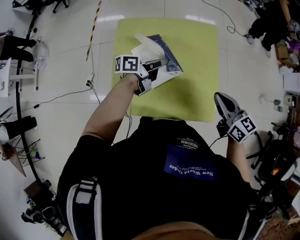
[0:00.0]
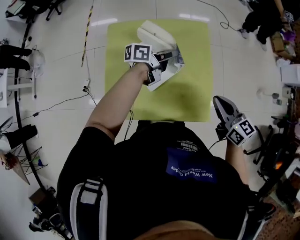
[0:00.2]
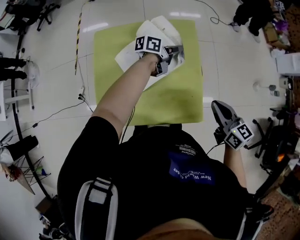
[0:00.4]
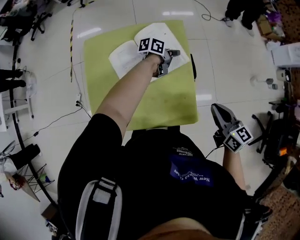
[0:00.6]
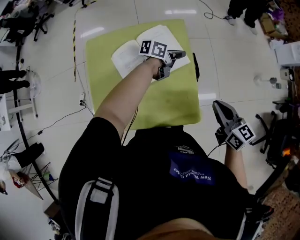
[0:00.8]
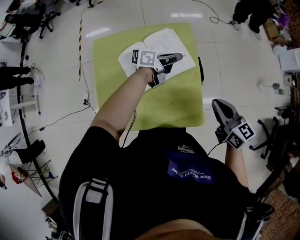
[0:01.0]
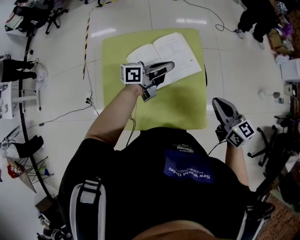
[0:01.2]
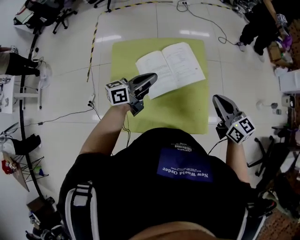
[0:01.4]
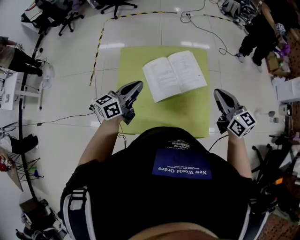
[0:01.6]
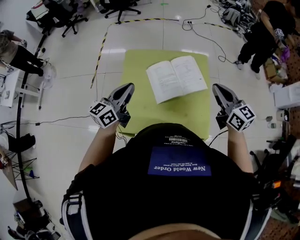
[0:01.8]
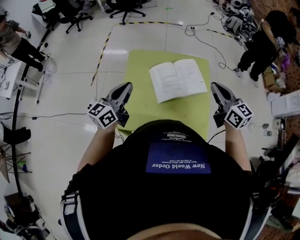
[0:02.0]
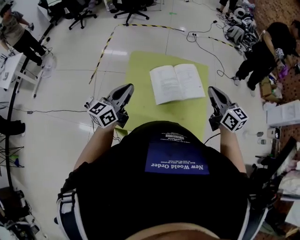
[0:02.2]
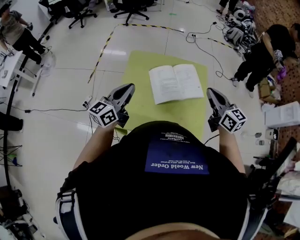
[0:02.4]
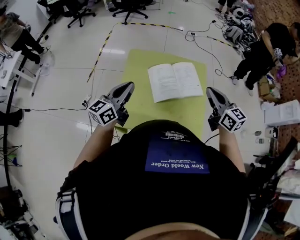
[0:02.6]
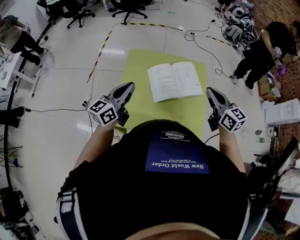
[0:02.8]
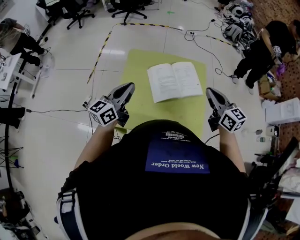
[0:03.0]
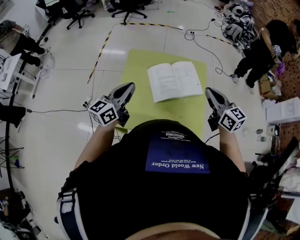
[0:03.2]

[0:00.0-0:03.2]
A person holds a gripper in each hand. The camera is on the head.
0:00.0 to 0:01.6: The right gripper goes some 10 cm upward and forward, and reaches about 15 cm to the right, then returns; the left gripper goes approximately 15 cm upward and backward, reaches roughly 20 cm to the right, then returns, and rotates some 40 degrees.
0:01.6 to 0:03.2: The left gripper heads to the left and backward, covering approximately 10 cm. Meanwhile the right gripper shifts roughly 5 cm to the left.

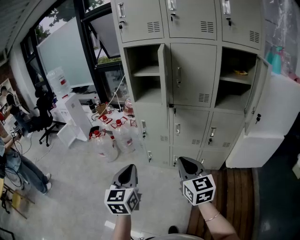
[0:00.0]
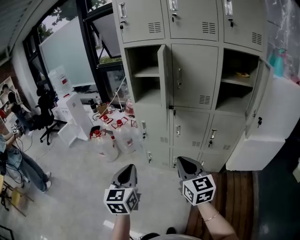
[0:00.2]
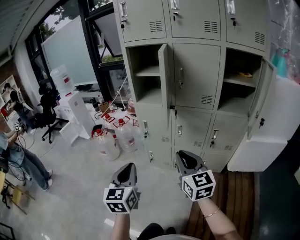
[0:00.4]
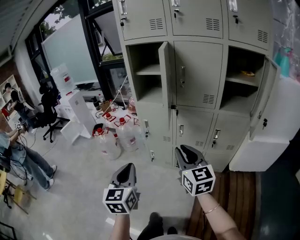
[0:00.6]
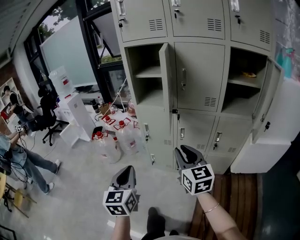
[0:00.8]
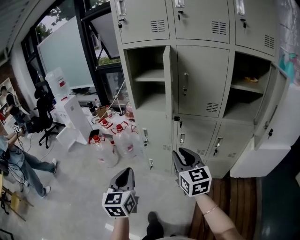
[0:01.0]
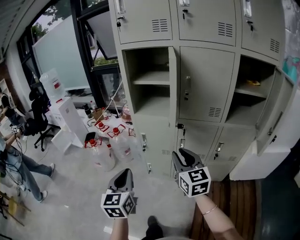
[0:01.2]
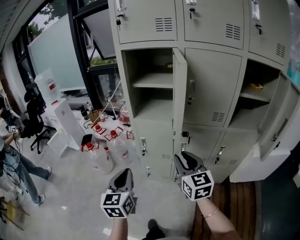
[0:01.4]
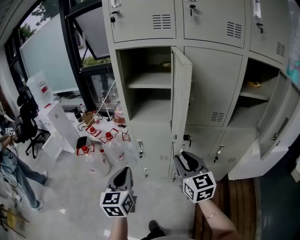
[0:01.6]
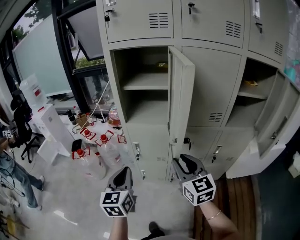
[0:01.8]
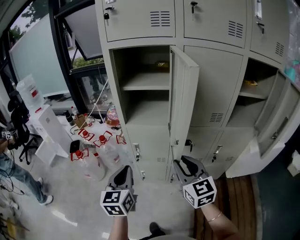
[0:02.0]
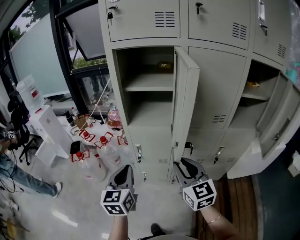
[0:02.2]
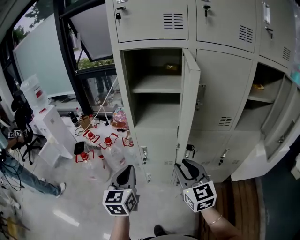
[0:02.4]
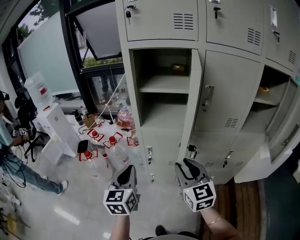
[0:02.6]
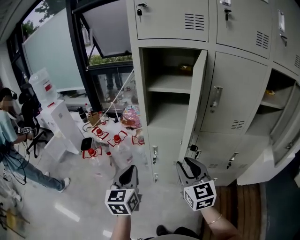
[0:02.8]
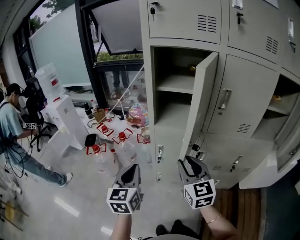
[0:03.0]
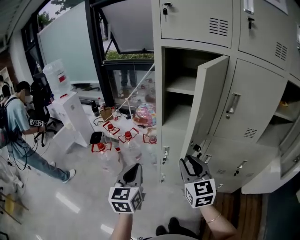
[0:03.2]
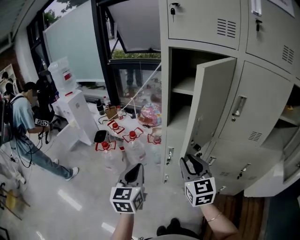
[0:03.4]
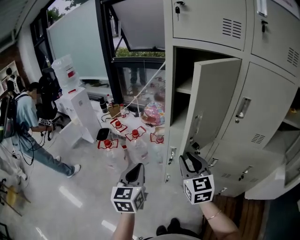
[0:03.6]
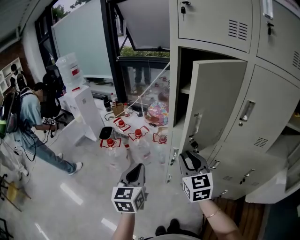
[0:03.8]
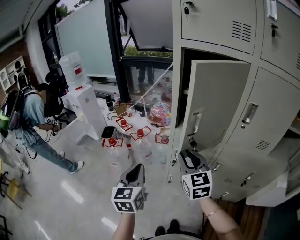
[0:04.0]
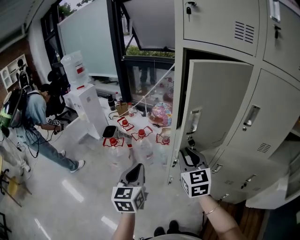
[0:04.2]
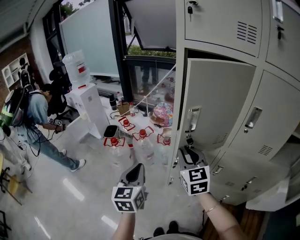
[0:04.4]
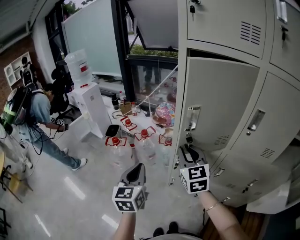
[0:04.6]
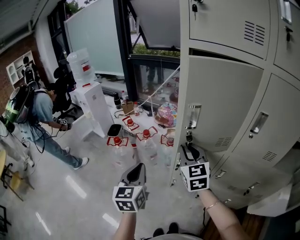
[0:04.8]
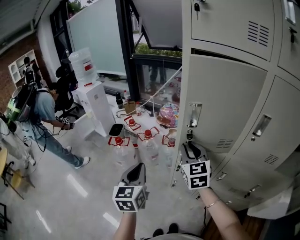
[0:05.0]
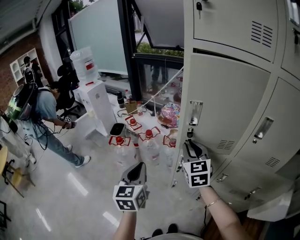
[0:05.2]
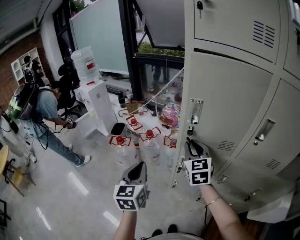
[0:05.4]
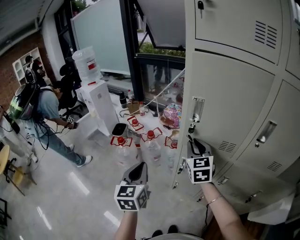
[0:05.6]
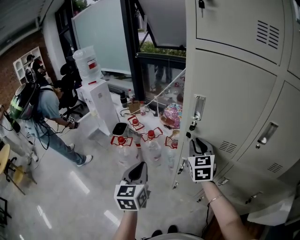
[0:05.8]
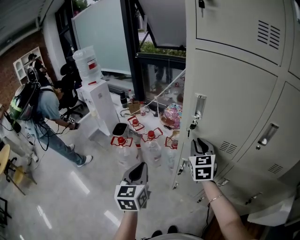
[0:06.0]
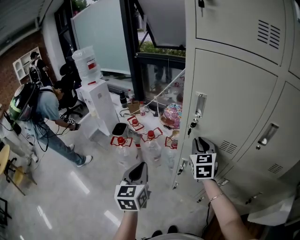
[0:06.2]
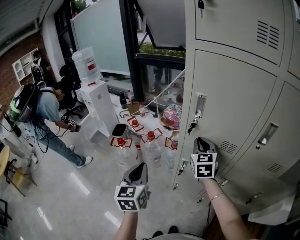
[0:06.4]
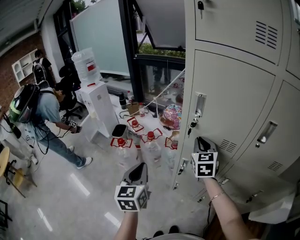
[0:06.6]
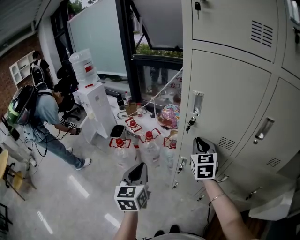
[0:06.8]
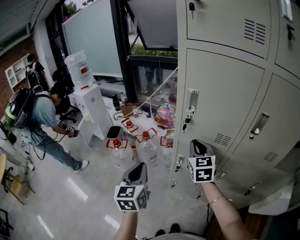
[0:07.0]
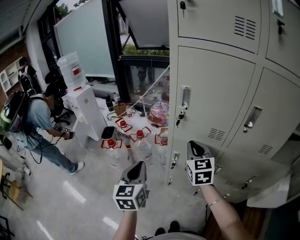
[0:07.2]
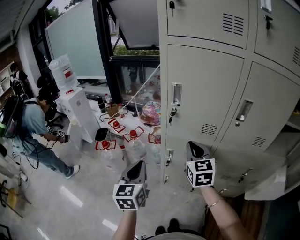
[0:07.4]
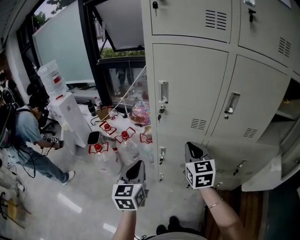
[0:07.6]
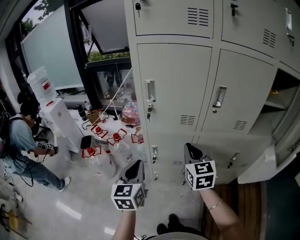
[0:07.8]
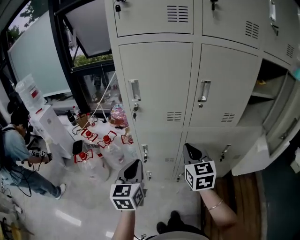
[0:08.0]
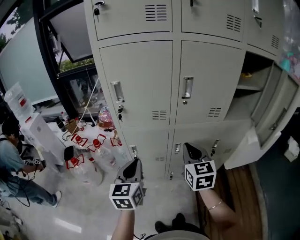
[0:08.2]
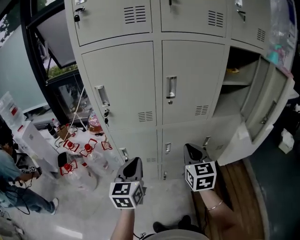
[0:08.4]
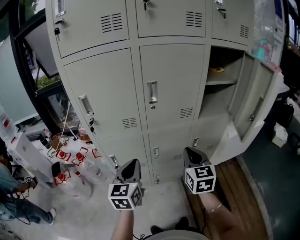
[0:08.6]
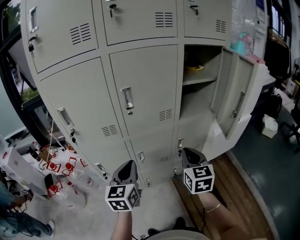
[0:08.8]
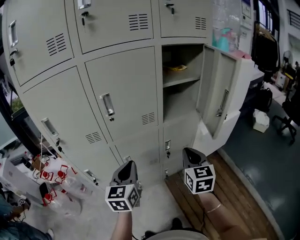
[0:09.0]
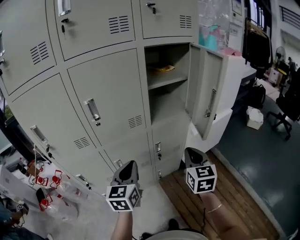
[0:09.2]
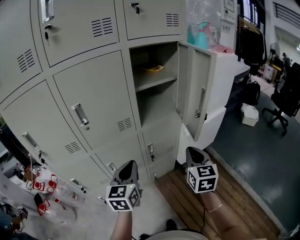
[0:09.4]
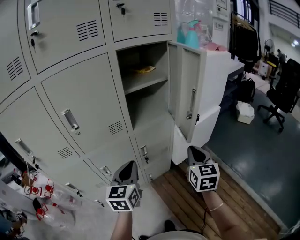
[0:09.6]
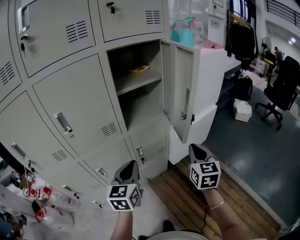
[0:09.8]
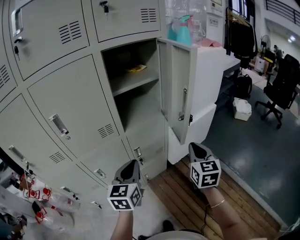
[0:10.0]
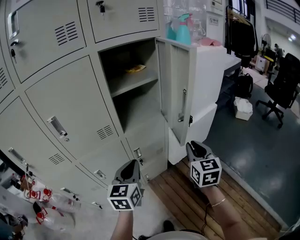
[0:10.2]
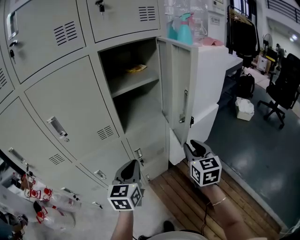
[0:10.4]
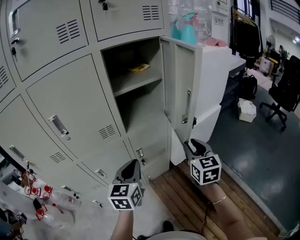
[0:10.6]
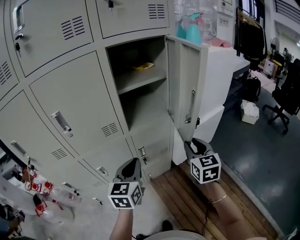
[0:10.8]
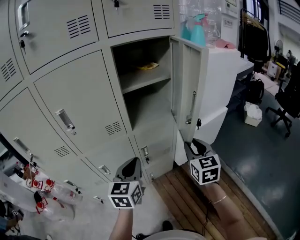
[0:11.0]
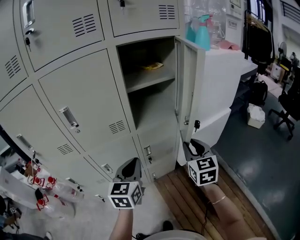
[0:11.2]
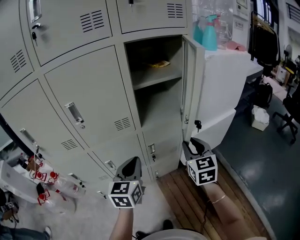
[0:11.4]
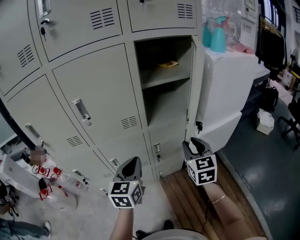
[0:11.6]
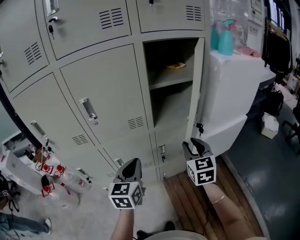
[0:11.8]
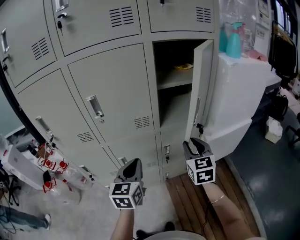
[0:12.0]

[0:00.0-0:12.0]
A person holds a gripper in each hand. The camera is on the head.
0:00.0 to 0:01.6: The grippers both shift forward by some 25 cm. The right gripper opens up.
0:01.6 to 0:03.0: Both grippers move to the left and forward, about 15 cm.
0:03.0 to 0:04.4: The right gripper shifts about 15 cm forward and to the left, while the left gripper ends up roughly 5 cm from where it was.
0:04.4 to 0:06.0: The right gripper moves forward and to the right, roughly 15 cm; the left gripper is displaced forward by about 5 cm.
0:06.0 to 0:07.6: The right gripper is displaced backward by approximately 15 cm, while the left gripper is displaced to the right and backward by about 10 cm.
0:07.6 to 0:09.0: The right gripper ends up approximately 40 cm from where it was, and changes its angle by approximately 40 degrees. The left gripper shifts by roughly 35 cm, and swivels some 40 degrees.
0:09.0 to 0:10.4: Both grippers move to the right and forward, approximately 20 cm. The right gripper opens up.
0:10.4 to 0:12.0: Both grippers move to the left, approximately 15 cm.

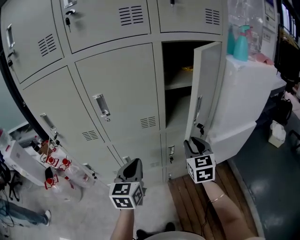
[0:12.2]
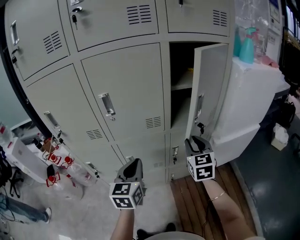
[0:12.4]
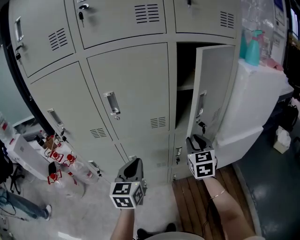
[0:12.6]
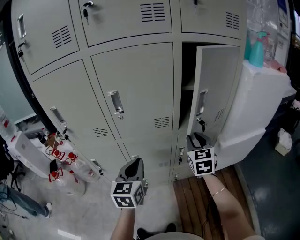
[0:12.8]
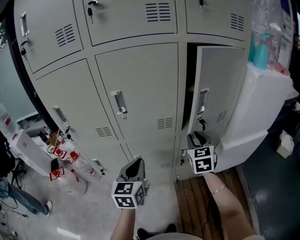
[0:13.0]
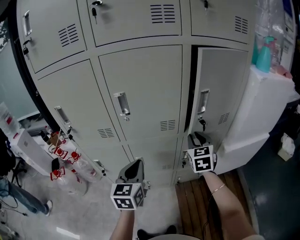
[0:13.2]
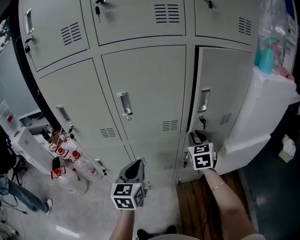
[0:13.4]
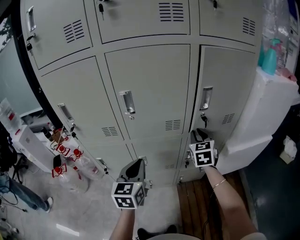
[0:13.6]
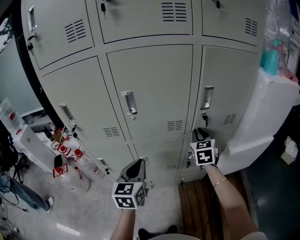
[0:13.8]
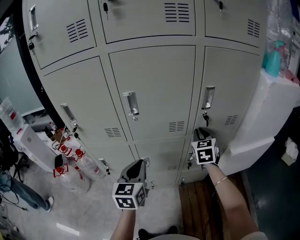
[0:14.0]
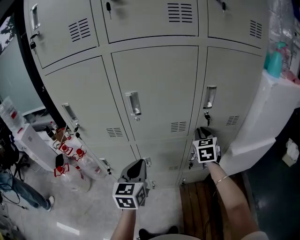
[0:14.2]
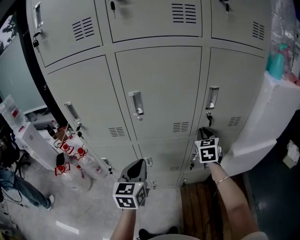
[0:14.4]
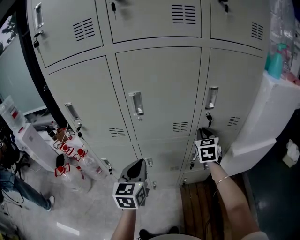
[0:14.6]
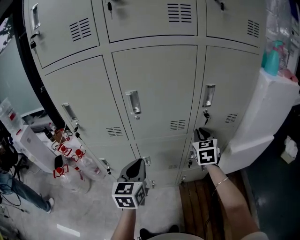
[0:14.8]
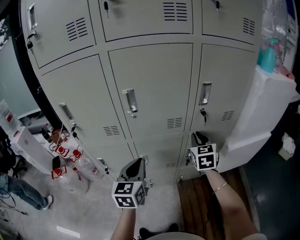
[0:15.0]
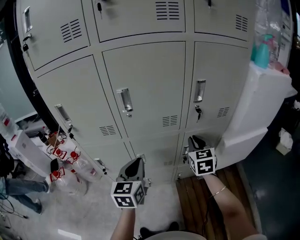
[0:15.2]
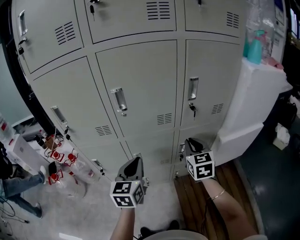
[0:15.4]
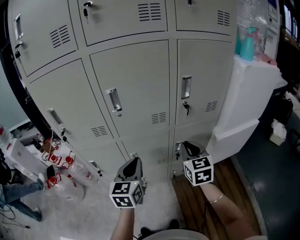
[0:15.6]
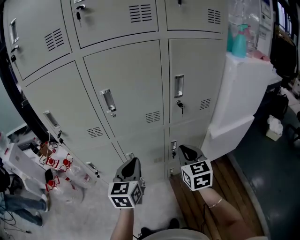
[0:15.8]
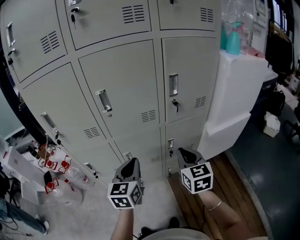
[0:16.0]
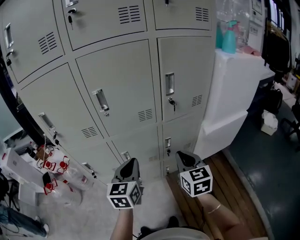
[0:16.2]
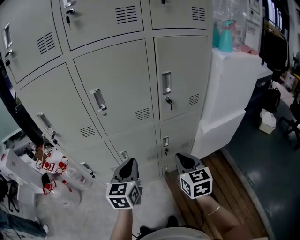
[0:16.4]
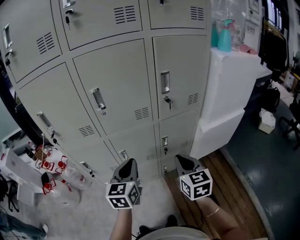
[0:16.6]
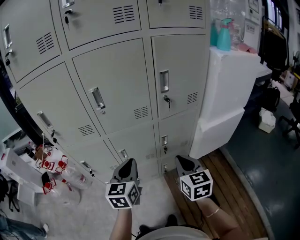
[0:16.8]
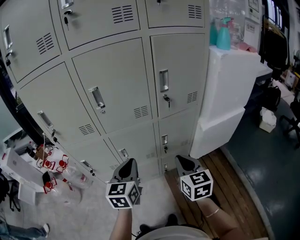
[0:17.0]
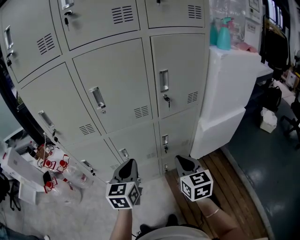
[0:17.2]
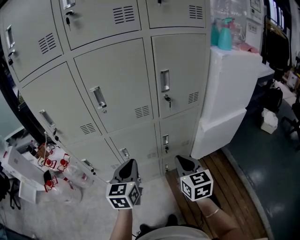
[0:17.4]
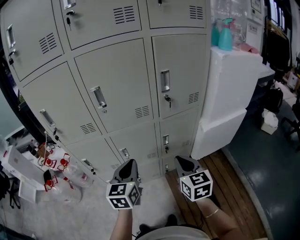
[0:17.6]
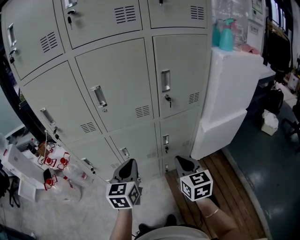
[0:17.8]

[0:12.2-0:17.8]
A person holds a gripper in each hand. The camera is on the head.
0:12.2 to 0:13.6: The right gripper moves forward and to the left, some 15 cm; the left gripper goes approximately 10 cm to the left.
0:13.6 to 0:15.0: There are only small adjustments of the grippers.
0:15.0 to 0:16.4: The left gripper moves to the right and backward, some 10 cm; the right gripper goes roughly 20 cm backward.
0:16.4 to 0:17.8: The grippers move only a little.

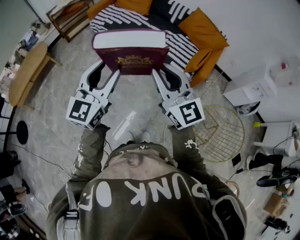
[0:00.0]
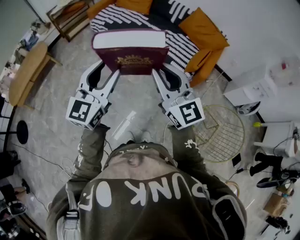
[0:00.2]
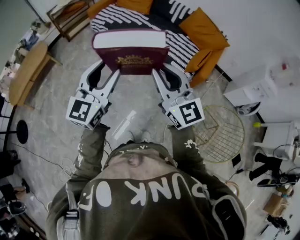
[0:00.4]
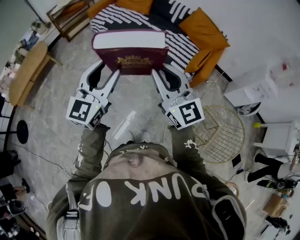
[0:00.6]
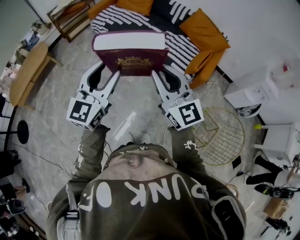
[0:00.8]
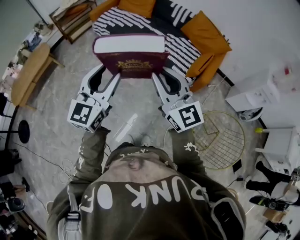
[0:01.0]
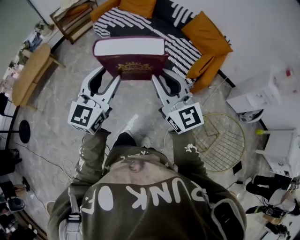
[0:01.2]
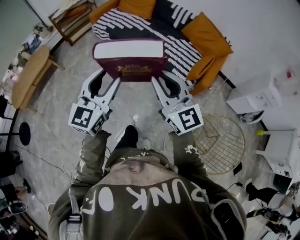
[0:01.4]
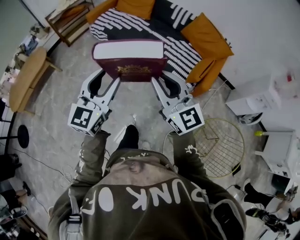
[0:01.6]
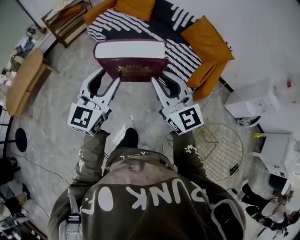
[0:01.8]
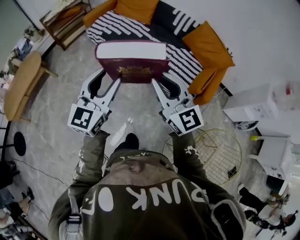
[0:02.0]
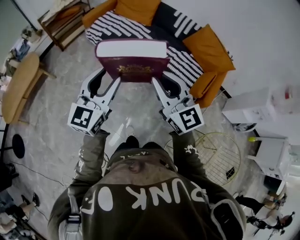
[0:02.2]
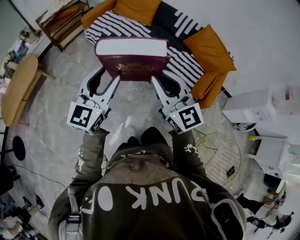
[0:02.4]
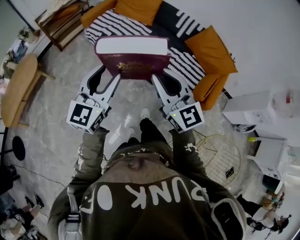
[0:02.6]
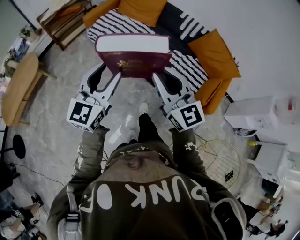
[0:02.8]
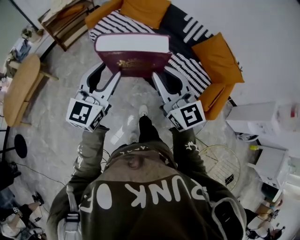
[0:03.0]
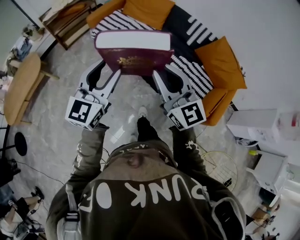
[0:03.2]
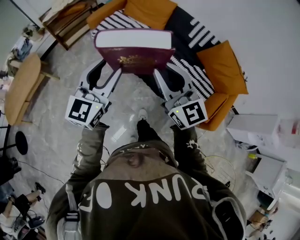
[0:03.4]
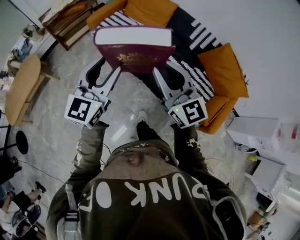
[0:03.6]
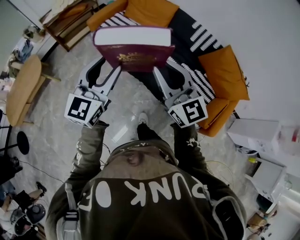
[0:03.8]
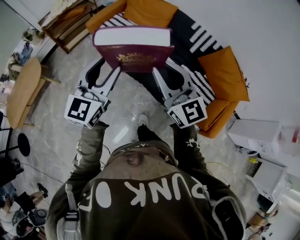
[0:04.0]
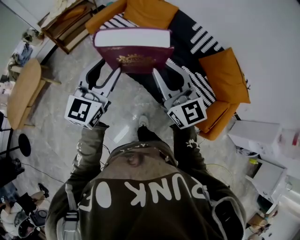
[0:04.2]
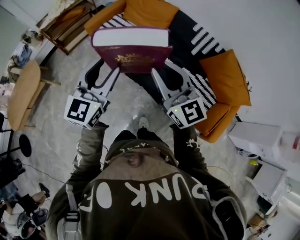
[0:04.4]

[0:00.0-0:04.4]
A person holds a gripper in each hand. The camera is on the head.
0:00.0 to 0:01.4: The right gripper heads forward, covering approximately 5 cm; the left gripper moves roughly 5 cm.
0:01.4 to 0:03.0: Both grippers travel together forward, approximately 35 cm.
0:03.0 to 0:04.4: Both grippers travel together forward, about 20 cm.
